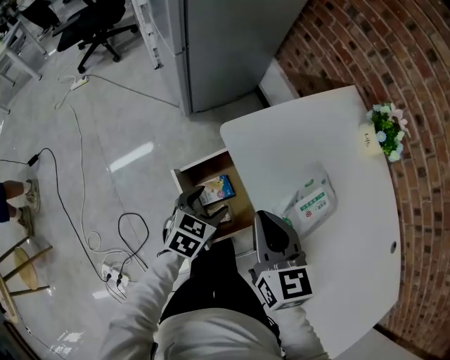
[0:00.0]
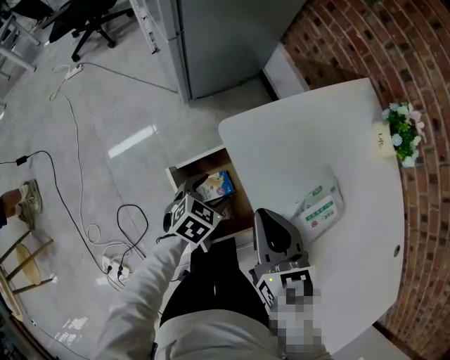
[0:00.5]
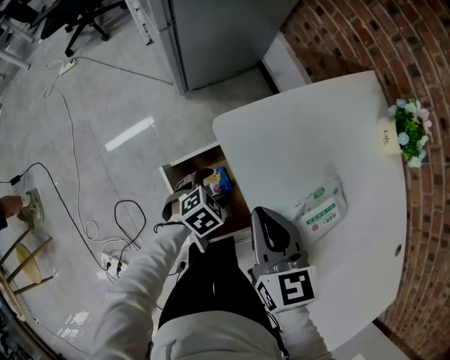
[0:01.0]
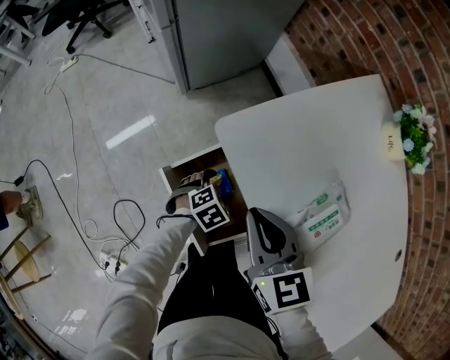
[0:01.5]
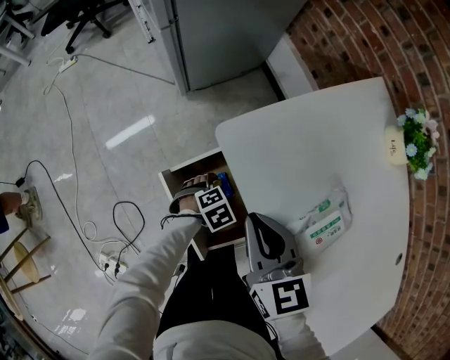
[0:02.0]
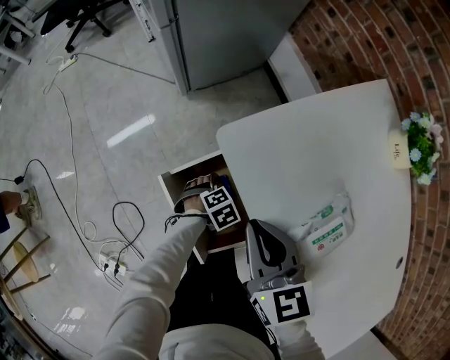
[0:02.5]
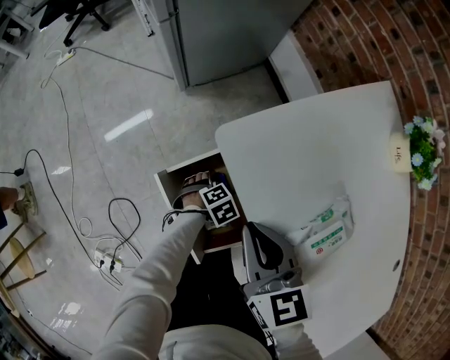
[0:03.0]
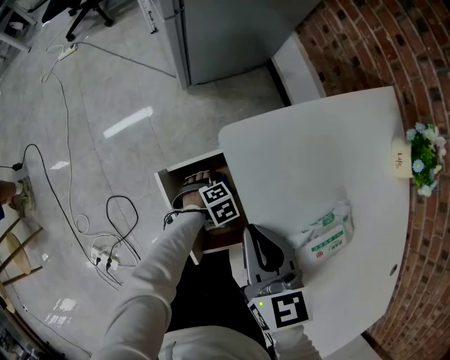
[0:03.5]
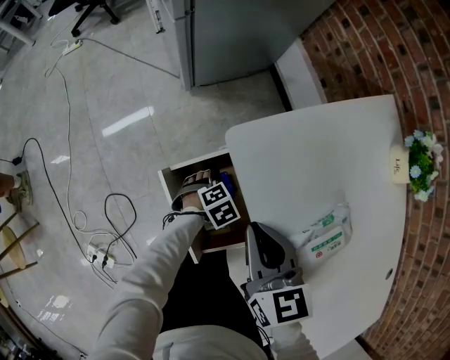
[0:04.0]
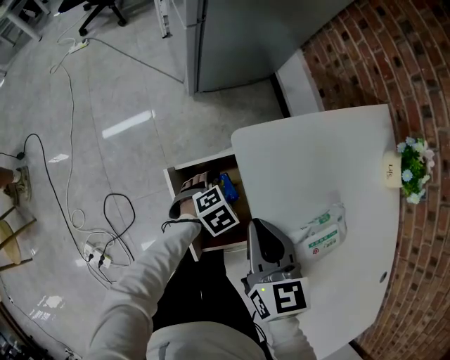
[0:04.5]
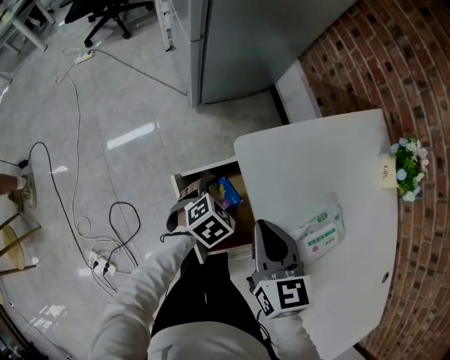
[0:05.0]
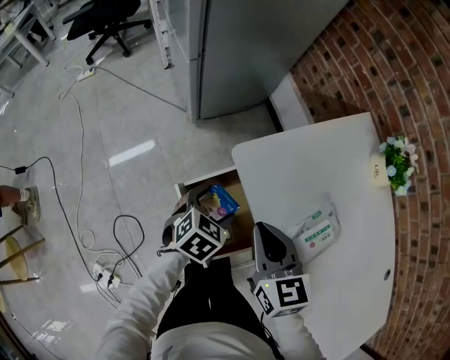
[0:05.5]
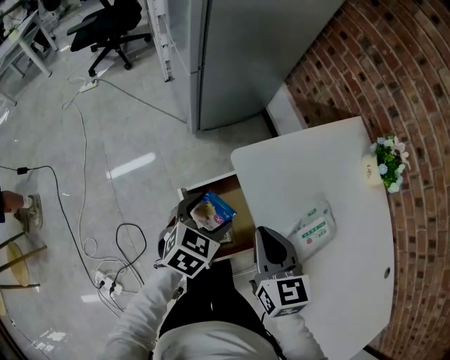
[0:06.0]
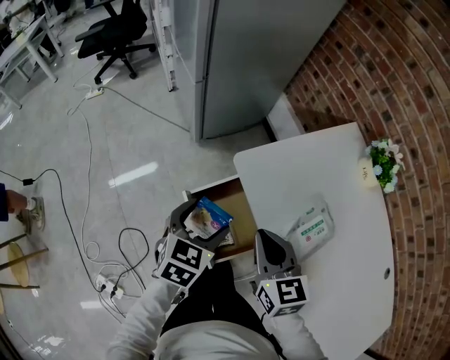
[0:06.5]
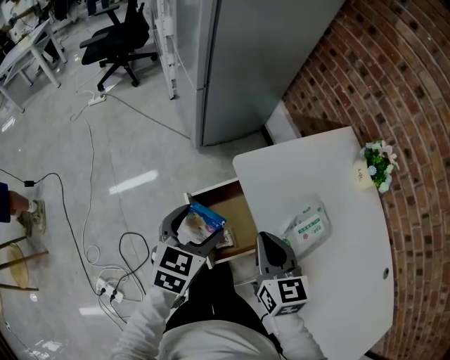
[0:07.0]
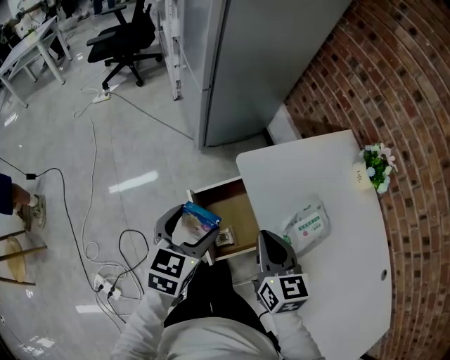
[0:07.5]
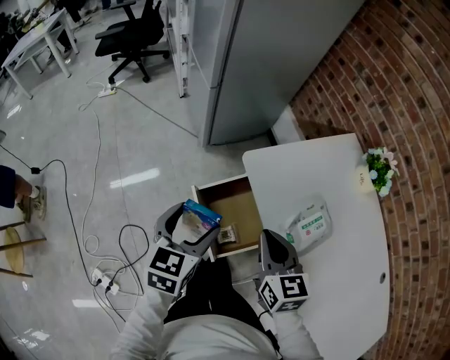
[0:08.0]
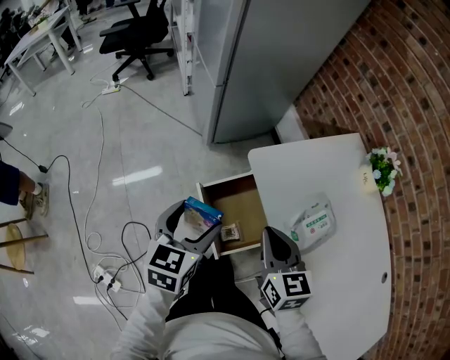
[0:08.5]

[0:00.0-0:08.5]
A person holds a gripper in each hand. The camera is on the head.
0:00.0 to 0:02.0: The left gripper shifts some 20 cm downward, and rotates approximately 40 degrees, while the right gripper goes roughly 5 cm downward.
0:02.0 to 0:04.0: The grippers move only a little.
0:04.0 to 0:06.5: The right gripper is displaced upward by roughly 5 cm; the left gripper goes roughly 30 cm upward, and points its fingers some 30 degrees further upward.
0:06.5 to 0:08.5: The left gripper is displaced to the left, upward and backward by about 10 cm.

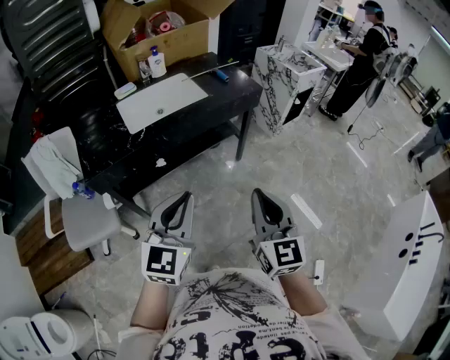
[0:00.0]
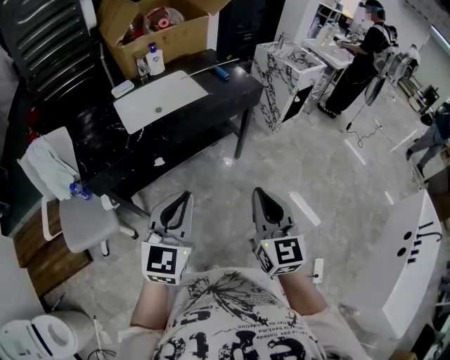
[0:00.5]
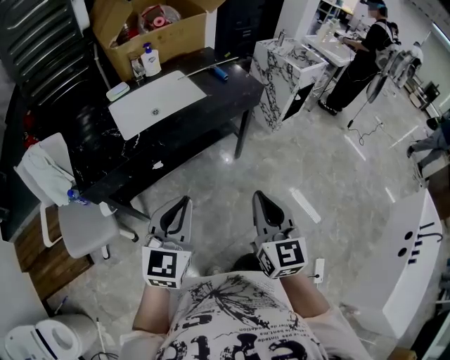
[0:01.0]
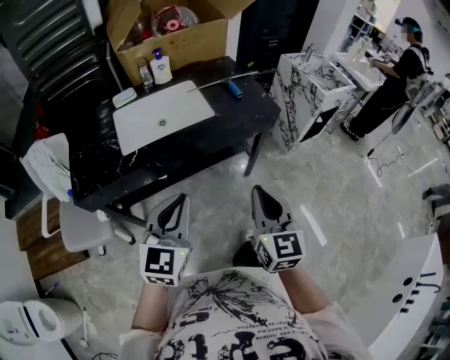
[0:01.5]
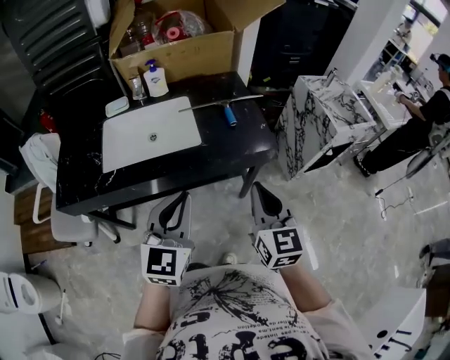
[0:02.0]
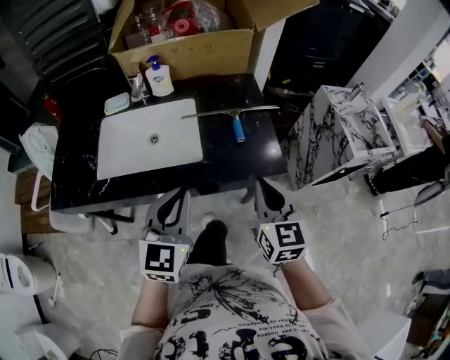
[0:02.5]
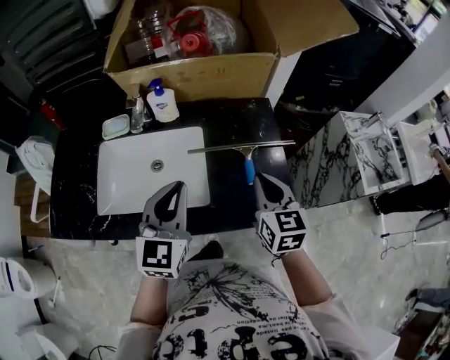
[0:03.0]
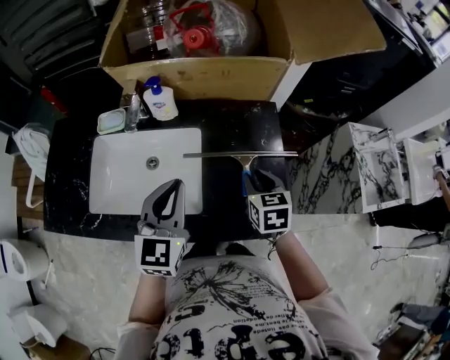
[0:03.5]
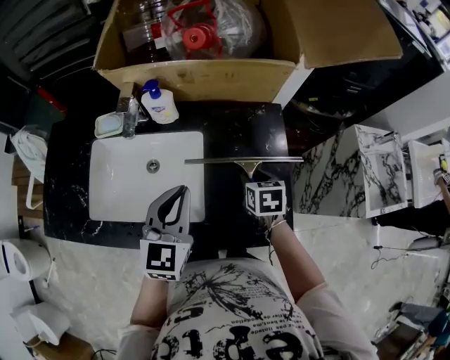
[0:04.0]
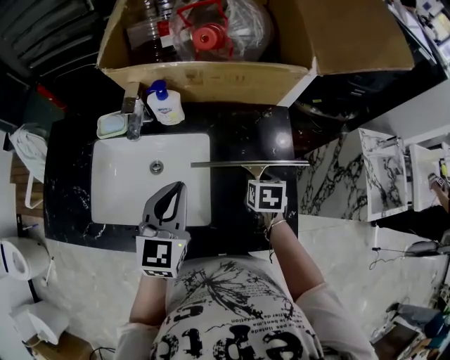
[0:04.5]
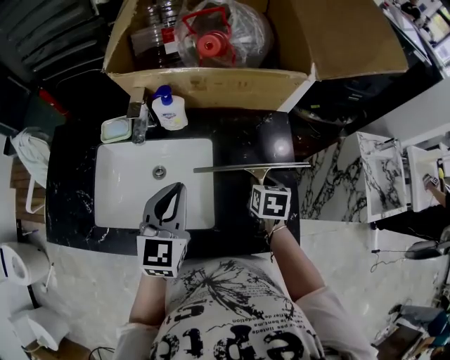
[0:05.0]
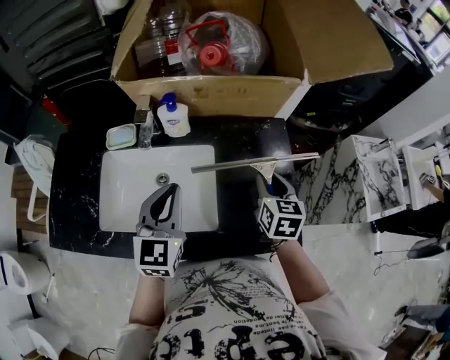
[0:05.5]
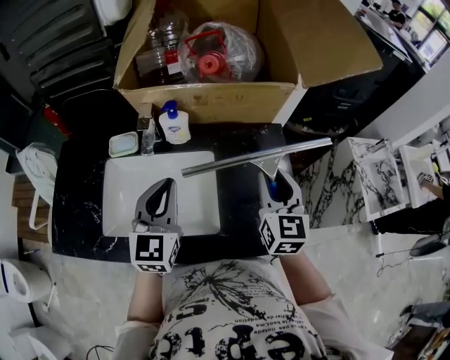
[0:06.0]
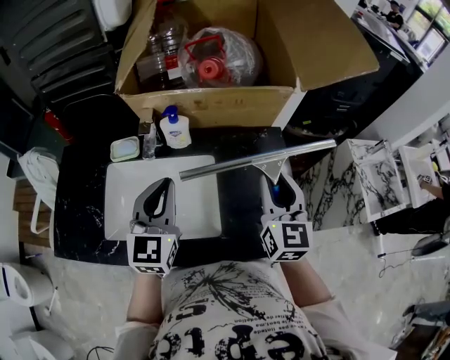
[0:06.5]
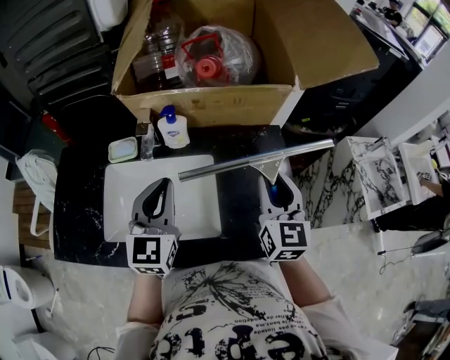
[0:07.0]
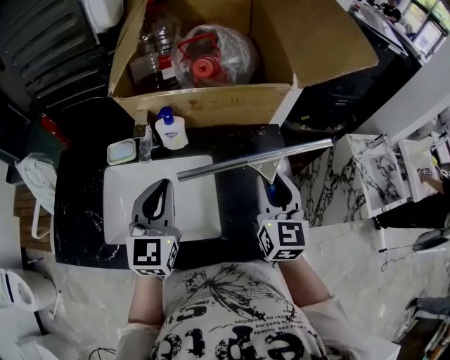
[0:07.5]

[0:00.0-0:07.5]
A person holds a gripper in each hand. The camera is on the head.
0:00.0 to 0:02.0: The left gripper heads forward and to the right, covering some 35 cm, and swivels approximately 20 degrees. The right gripper shifts about 40 cm forward.
0:02.0 to 0:04.0: The right gripper travels forward and downward by approximately 50 cm, tilts its fingers approximately 50 degrees downward, and opens. Meanwhile the left gripper travels forward by roughly 35 cm.
0:04.0 to 0:05.5: The right gripper goes approximately 10 cm upward, and changes its angle by approximately 20 degrees. The left gripper is displaced to the left by approximately 5 cm.
0:05.5 to 0:07.5: The left gripper changes place by approximately 5 cm. The right gripper moves upward, about 10 cm, and swivels about 20 degrees.

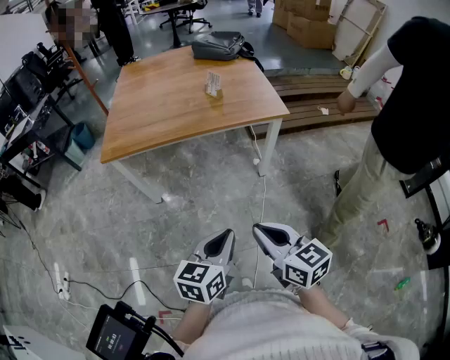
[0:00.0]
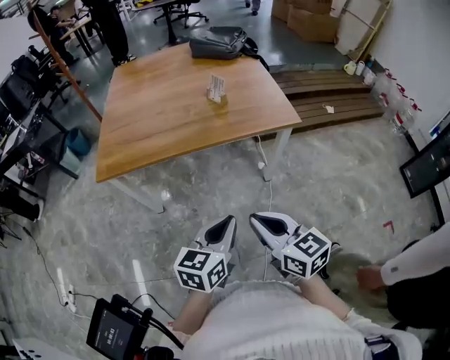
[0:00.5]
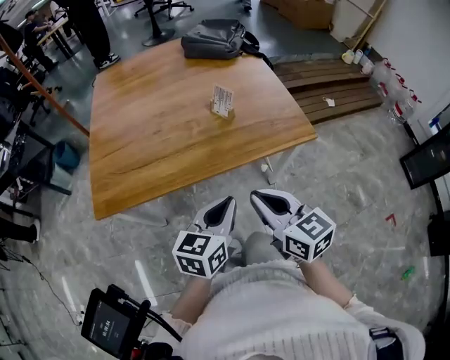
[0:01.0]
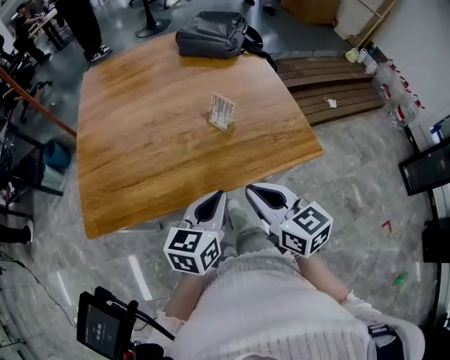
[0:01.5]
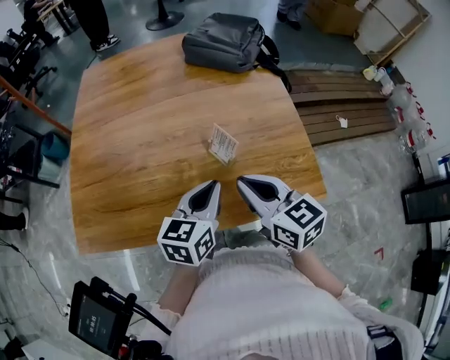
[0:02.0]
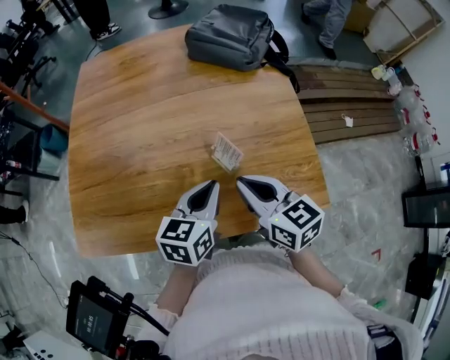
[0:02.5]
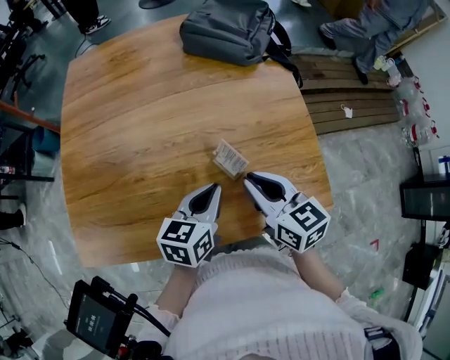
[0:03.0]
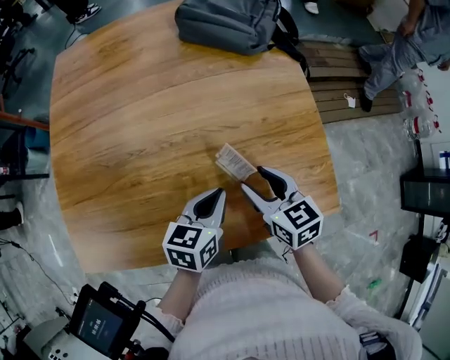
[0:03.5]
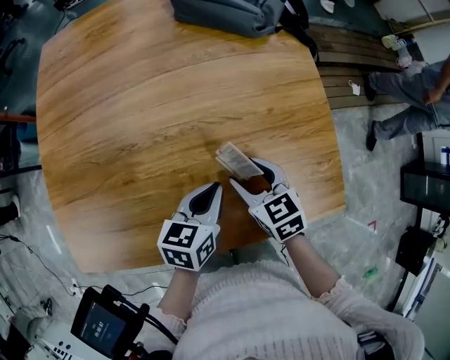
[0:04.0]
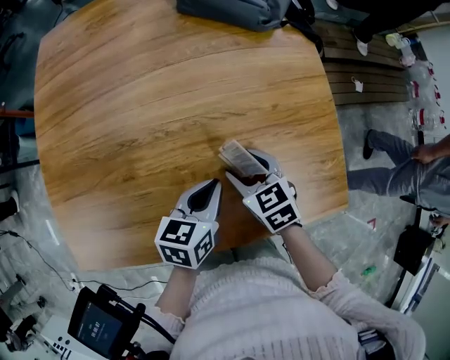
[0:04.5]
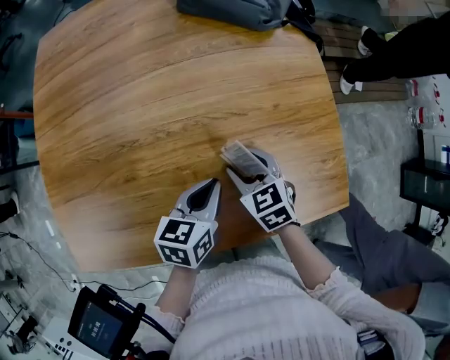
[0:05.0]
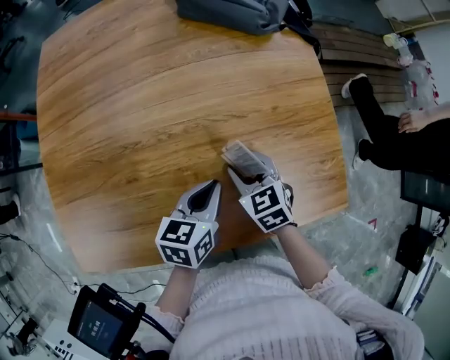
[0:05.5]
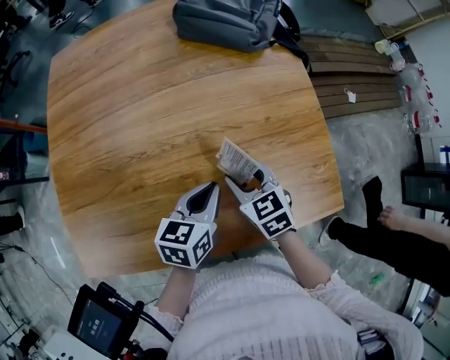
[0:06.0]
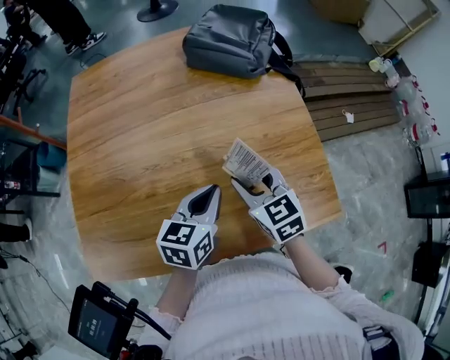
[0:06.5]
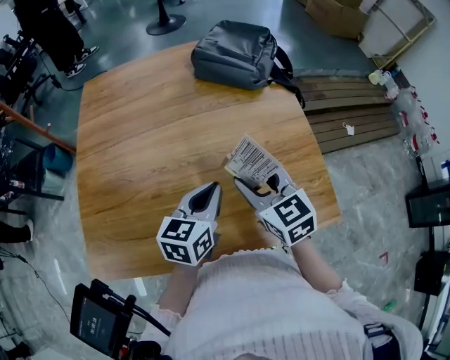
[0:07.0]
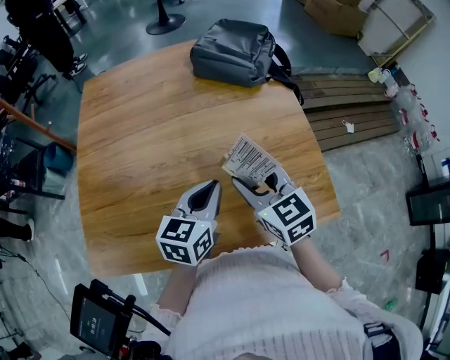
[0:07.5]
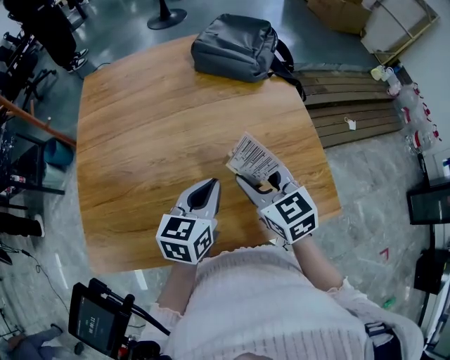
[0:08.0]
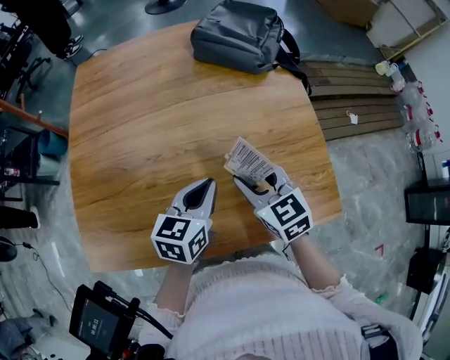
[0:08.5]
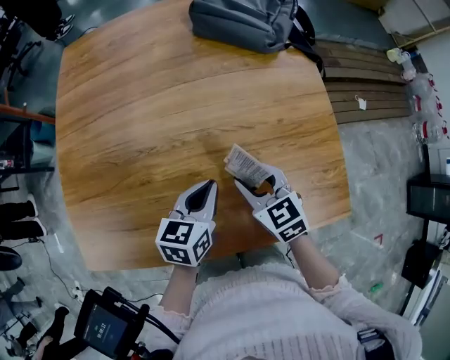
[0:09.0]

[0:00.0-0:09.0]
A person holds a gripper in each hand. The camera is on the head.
0:00.0 to 0:02.0: Both grippers are carried forward, some 60 cm.
0:02.0 to 0:04.5: The right gripper moves downward and forward, roughly 25 cm, turns by about 30 degrees, and opens its fingers. The left gripper shifts some 15 cm downward and forward, and turns by some 20 degrees.
0:04.5 to 0:07.0: The left gripper is displaced upward by roughly 10 cm, while the right gripper shifts about 20 cm upward, and swivels roughly 20 degrees.
0:07.0 to 0:09.0: Both grippers travel together downward, roughly 10 cm.

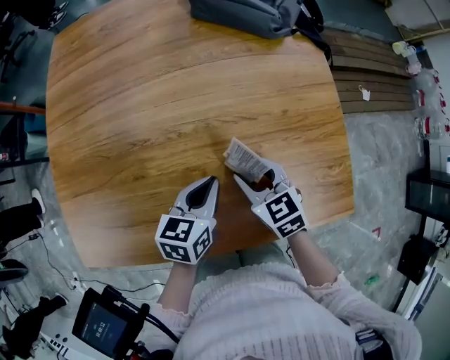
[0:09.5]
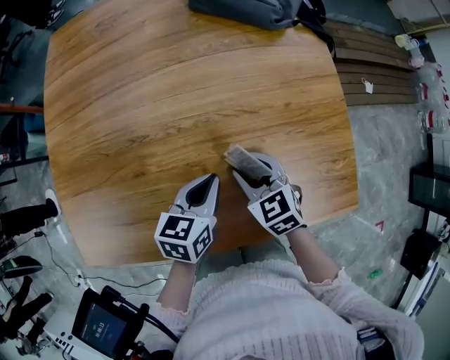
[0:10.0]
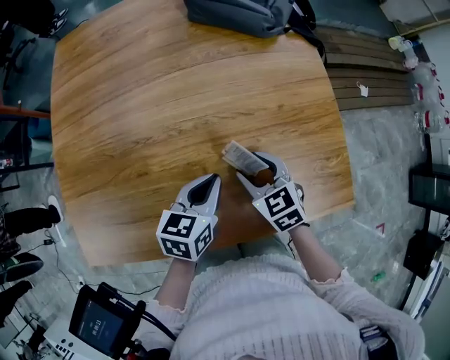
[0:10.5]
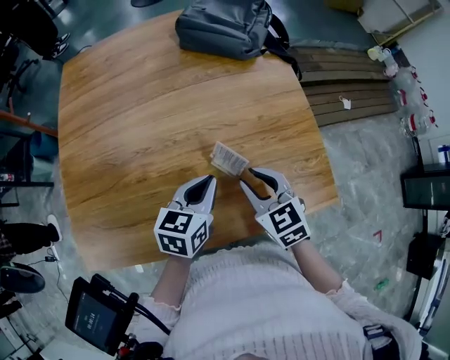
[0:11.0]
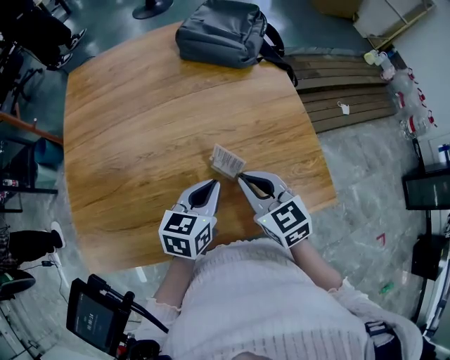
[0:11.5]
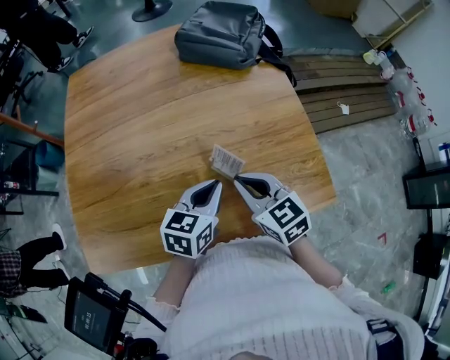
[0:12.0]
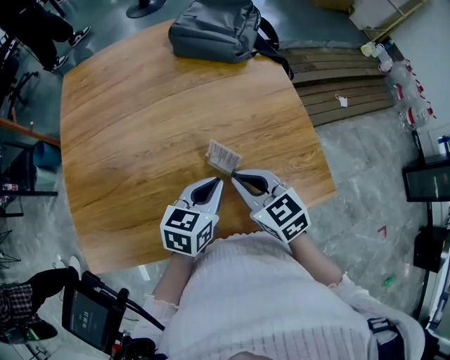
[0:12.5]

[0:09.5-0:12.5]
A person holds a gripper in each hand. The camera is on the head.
0:09.5 to 0:11.0: The grippers both shift upward by some 5 cm.
0:11.0 to 0:12.5: The right gripper closes.
